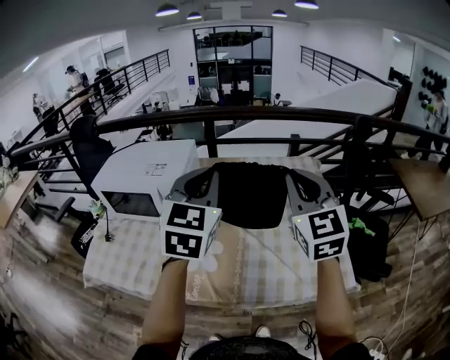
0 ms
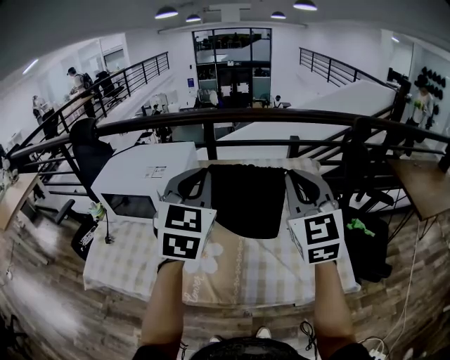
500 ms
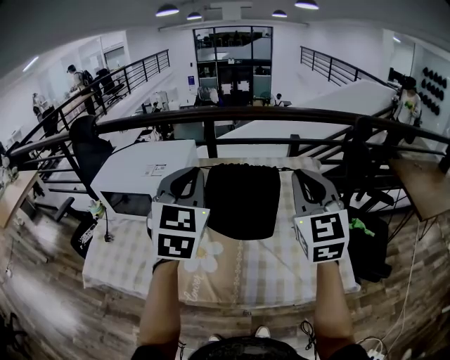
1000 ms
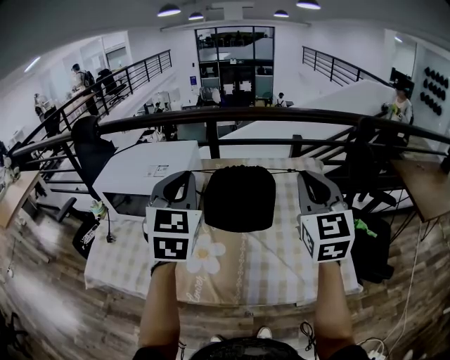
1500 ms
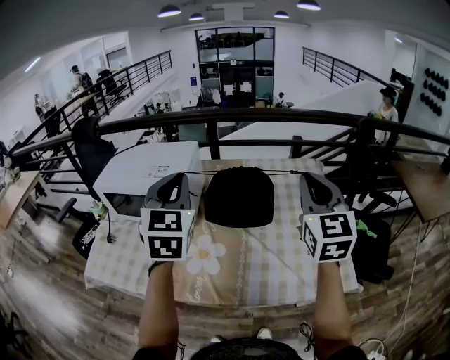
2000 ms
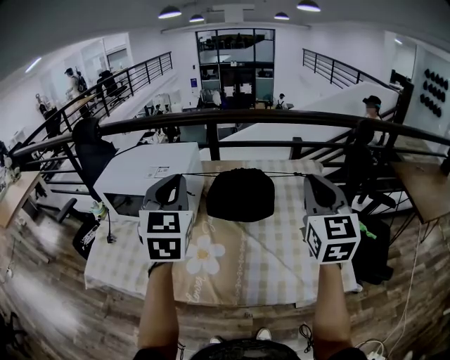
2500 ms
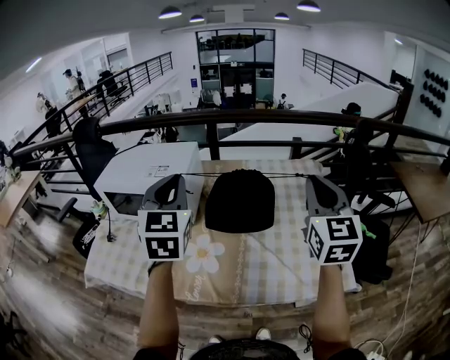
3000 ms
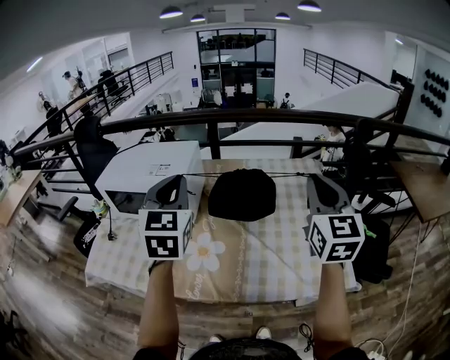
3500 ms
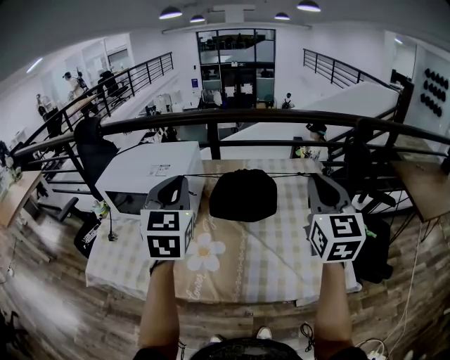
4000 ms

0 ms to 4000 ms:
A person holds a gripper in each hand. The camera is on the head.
0 ms to 2000 ms: The left gripper is displaced to the left by approximately 10 cm.
2000 ms to 4000 ms: The grippers stay close to where they were, moving slightly.

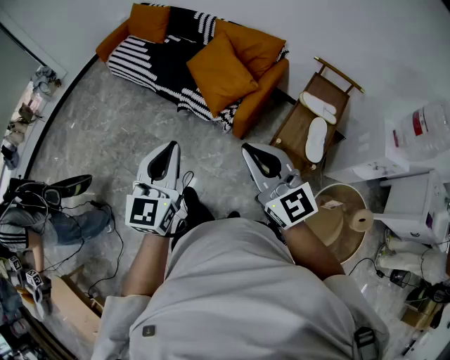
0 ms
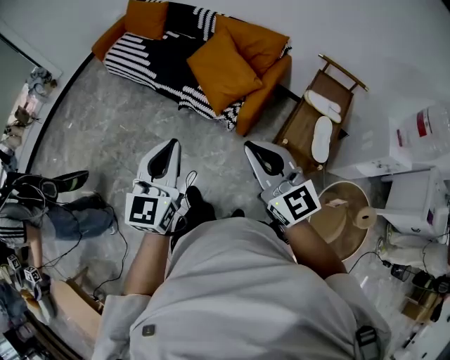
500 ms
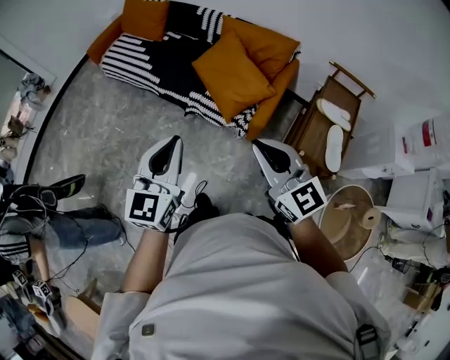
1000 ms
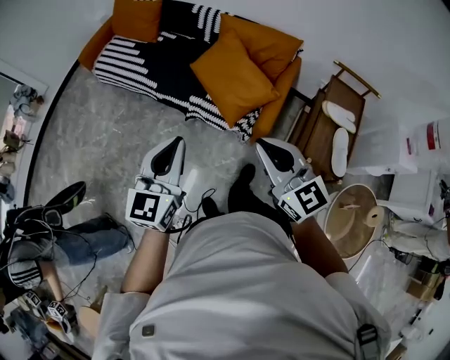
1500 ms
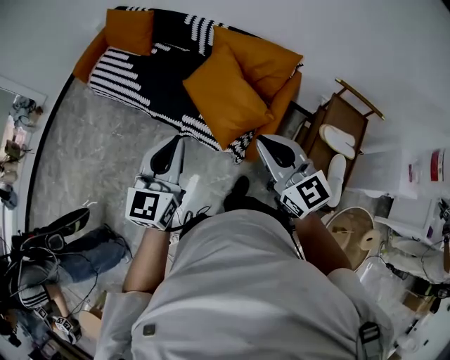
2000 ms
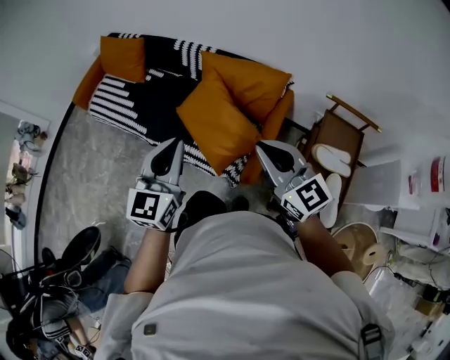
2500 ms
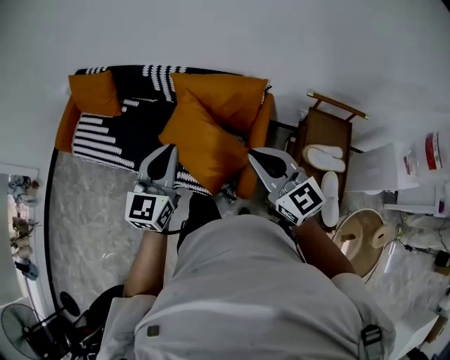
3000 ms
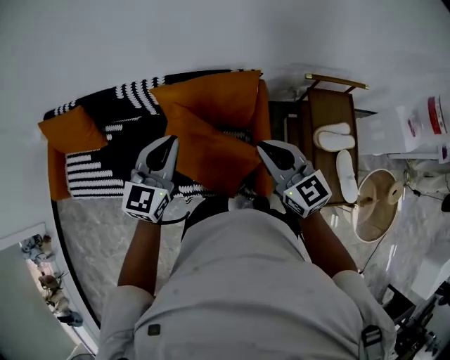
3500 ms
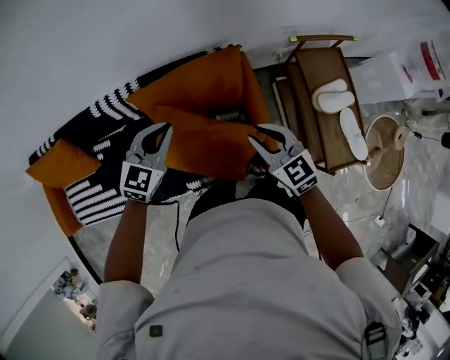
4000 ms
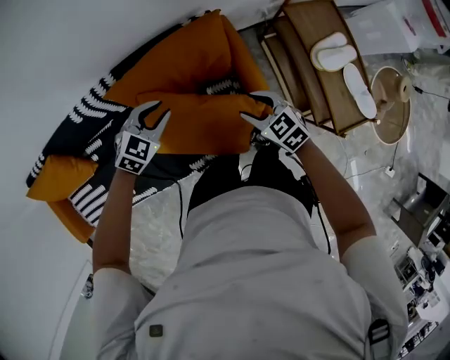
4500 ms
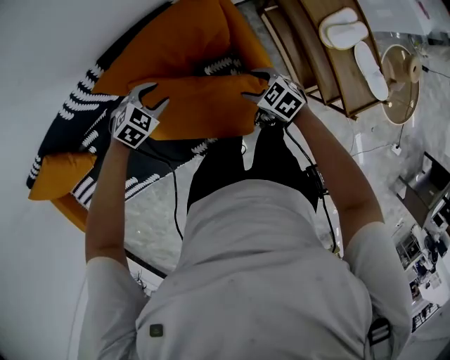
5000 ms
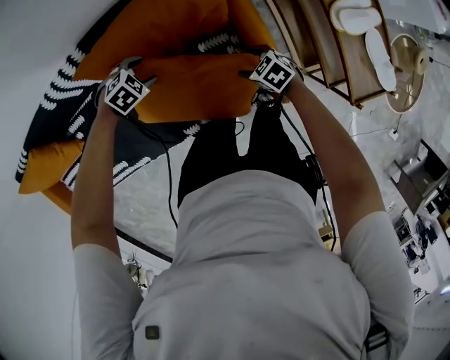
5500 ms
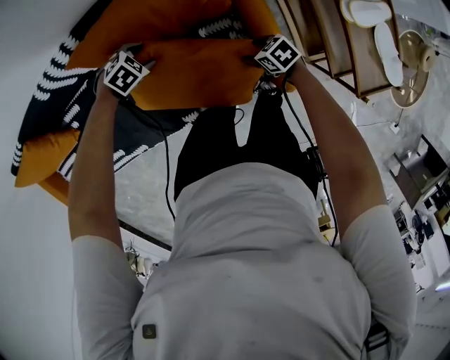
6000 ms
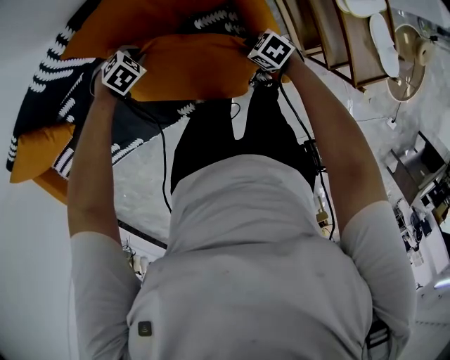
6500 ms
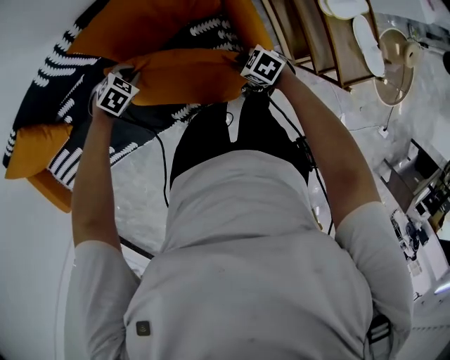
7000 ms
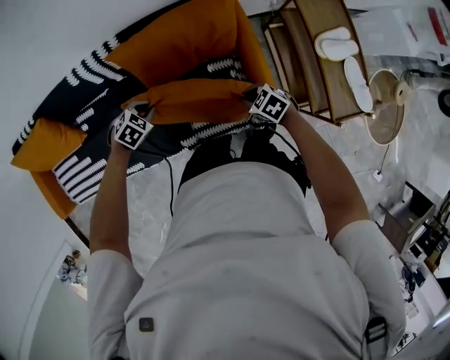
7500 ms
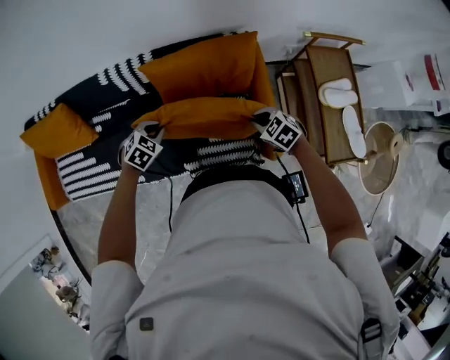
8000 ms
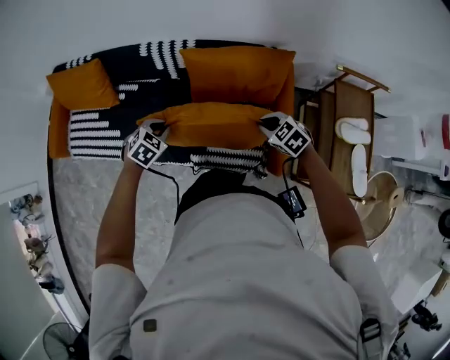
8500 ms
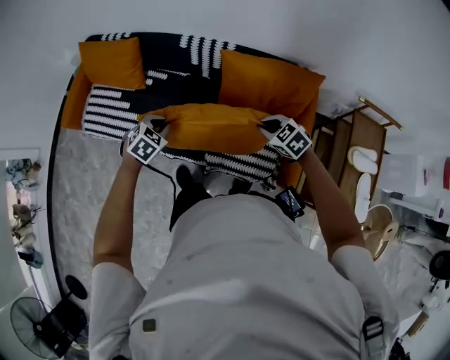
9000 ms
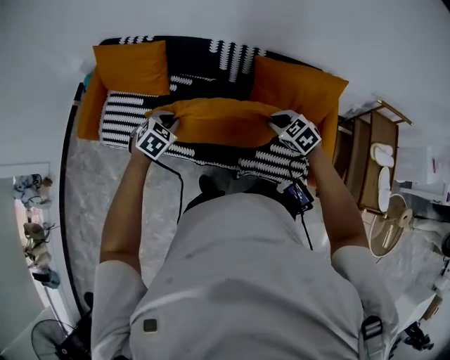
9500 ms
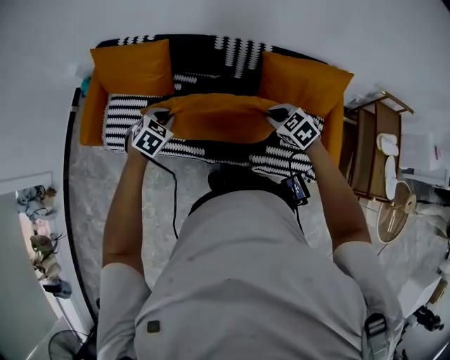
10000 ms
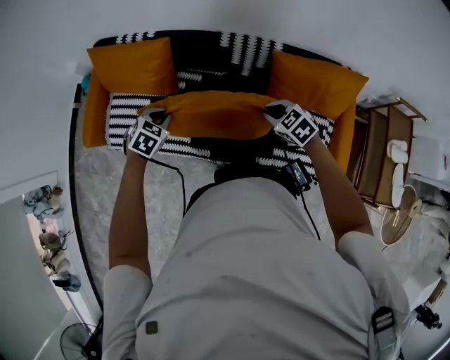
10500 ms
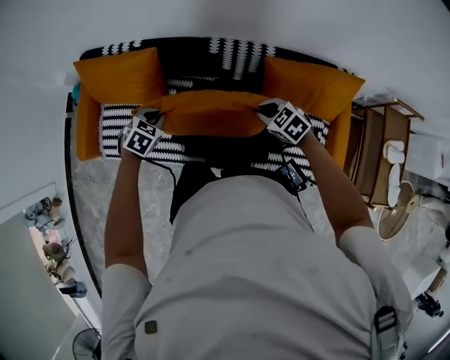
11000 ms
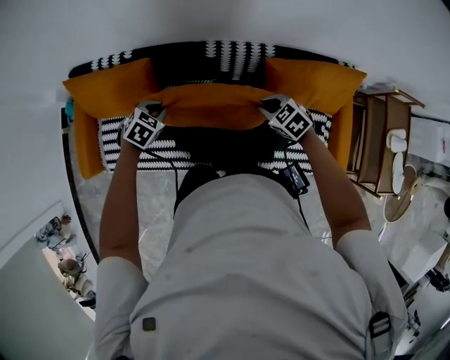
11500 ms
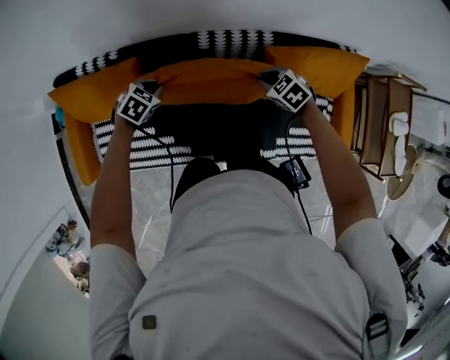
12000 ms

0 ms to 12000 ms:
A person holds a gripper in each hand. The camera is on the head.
0 ms to 2000 ms: The grippers both shift forward by roughly 35 cm.
2000 ms to 4000 ms: The left gripper shifts by approximately 50 cm, and swivels about 60 degrees, while the right gripper moves roughly 40 cm, and rotates approximately 40 degrees.
4000 ms to 6000 ms: The two grippers go approximately 40 cm downward. The right gripper tilts its fingers about 30 degrees downward, and opens. The left gripper tilts its fingers approximately 40 degrees downward, and opens.
6000 ms to 8000 ms: Both grippers move upward, approximately 25 cm. The right gripper turns by approximately 40 degrees, and closes. The left gripper rotates roughly 30 degrees, and closes.
8000 ms to 10000 ms: Both grippers are carried about 40 cm. The left gripper rotates about 20 degrees.
10000 ms to 12000 ms: The left gripper is displaced forward by roughly 35 cm, while the right gripper shifts approximately 30 cm forward and downward.

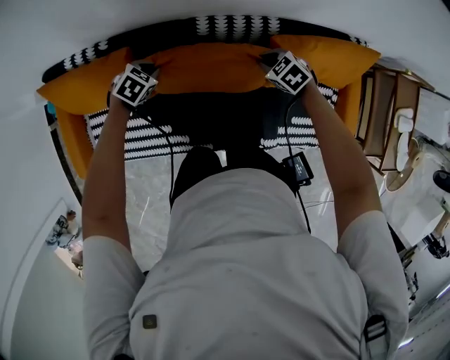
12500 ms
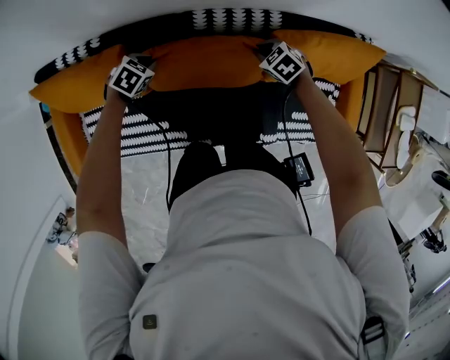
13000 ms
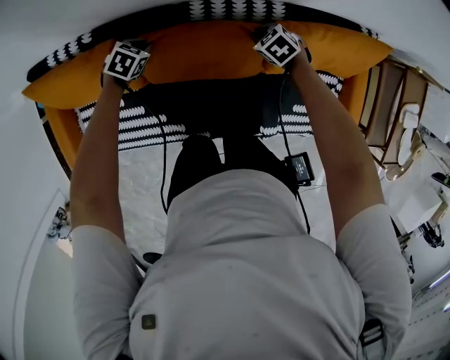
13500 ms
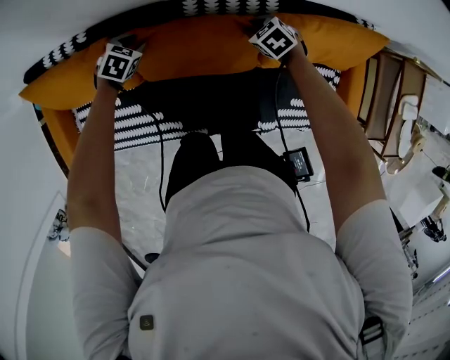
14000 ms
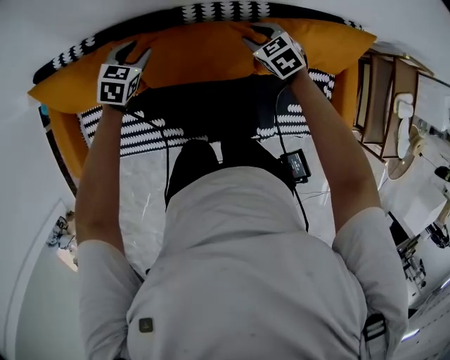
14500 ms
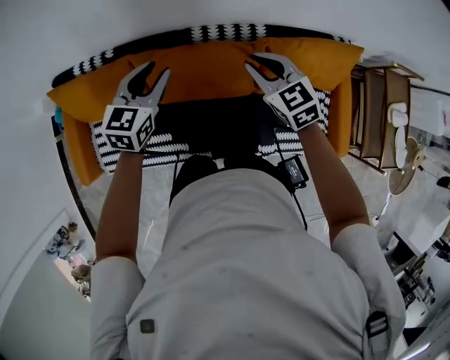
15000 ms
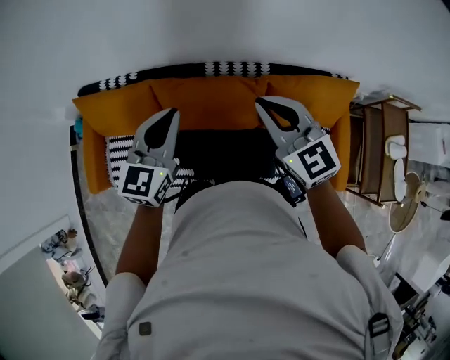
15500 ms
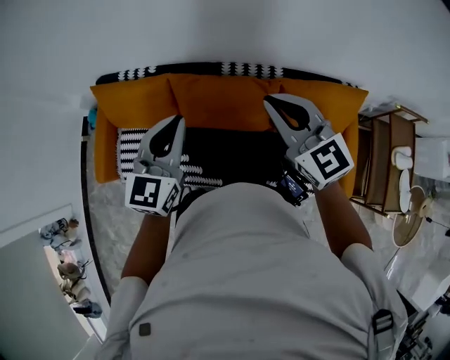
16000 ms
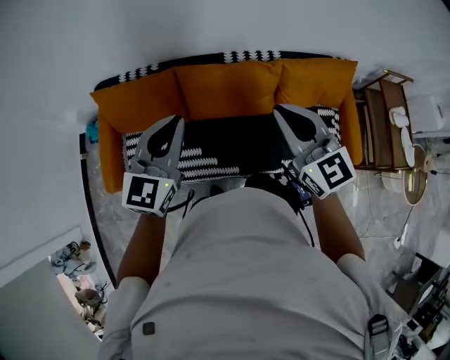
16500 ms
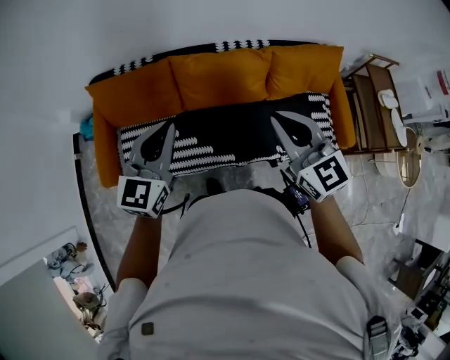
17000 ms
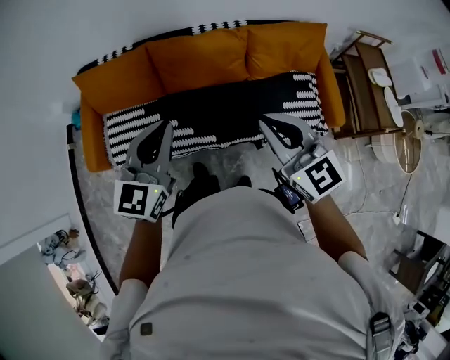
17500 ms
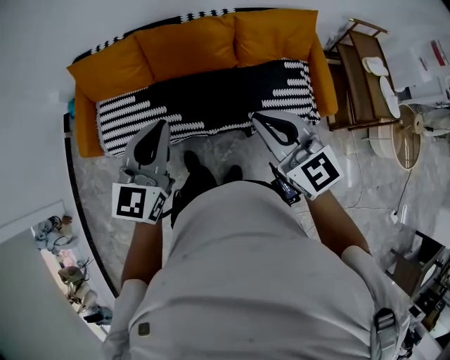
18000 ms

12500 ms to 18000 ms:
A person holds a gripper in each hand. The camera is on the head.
12500 ms to 14500 ms: The right gripper reaches about 5 cm downward, then returns, and opens; the left gripper moves upward, some 5 cm, rotates roughly 20 degrees, and opens its fingers.
14500 ms to 16000 ms: Both grippers move upward and backward, approximately 40 cm. The left gripper tips its fingers upward by approximately 40 degrees, and closes up; the right gripper tilts its fingers about 50 degrees upward, and closes its fingers.
16000 ms to 18000 ms: Both grippers move backward, some 40 cm.

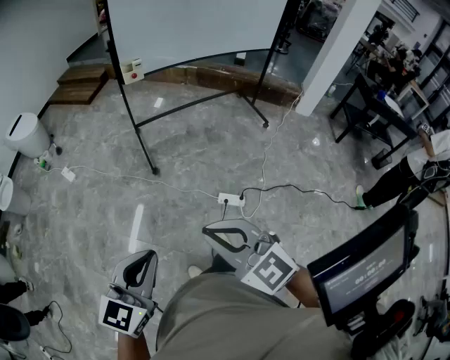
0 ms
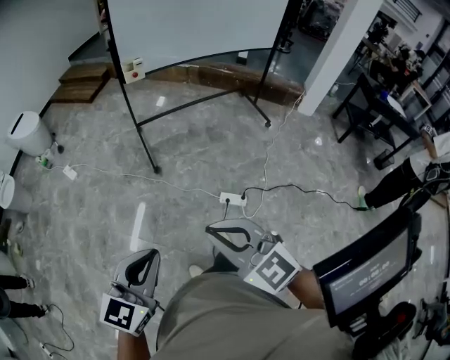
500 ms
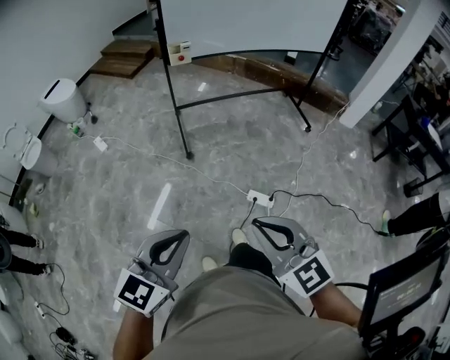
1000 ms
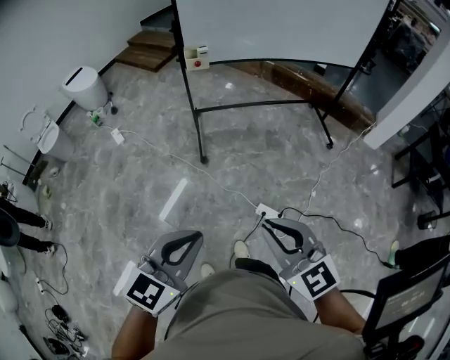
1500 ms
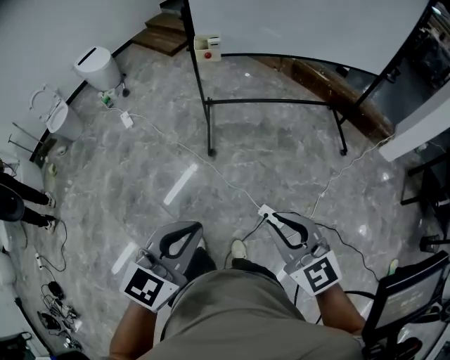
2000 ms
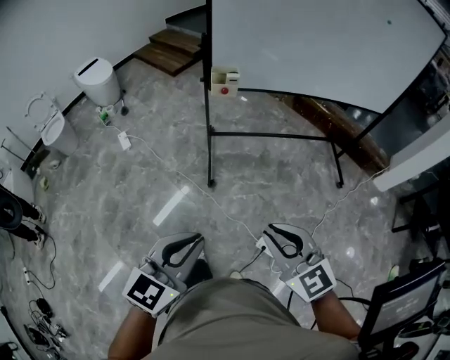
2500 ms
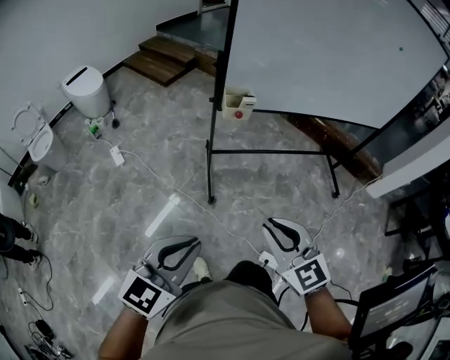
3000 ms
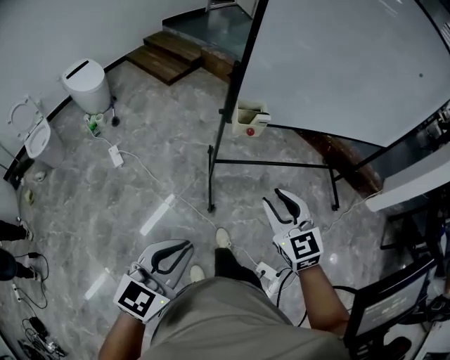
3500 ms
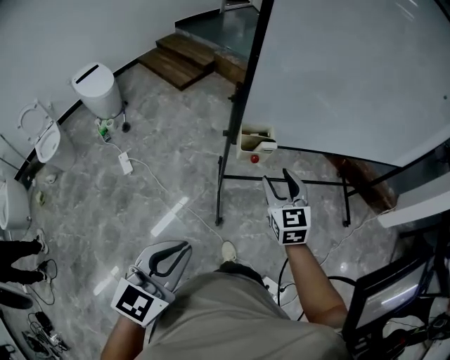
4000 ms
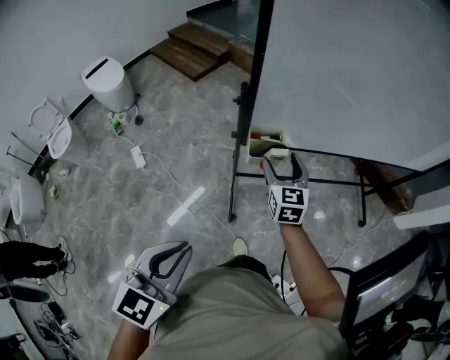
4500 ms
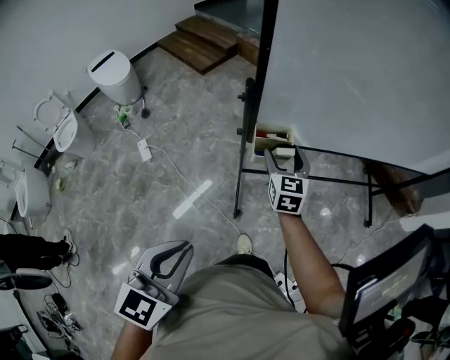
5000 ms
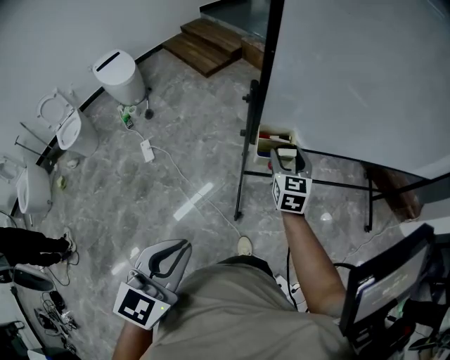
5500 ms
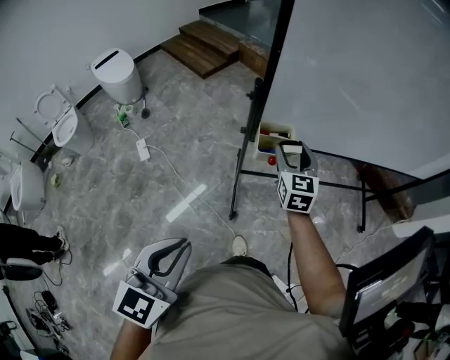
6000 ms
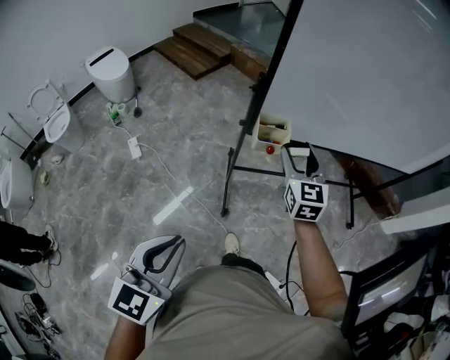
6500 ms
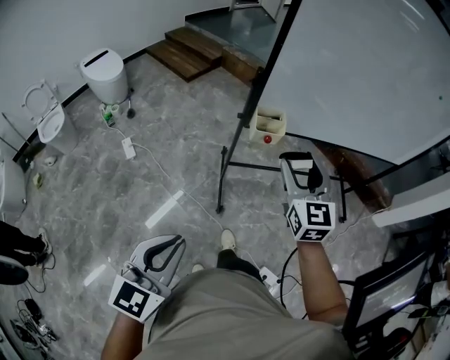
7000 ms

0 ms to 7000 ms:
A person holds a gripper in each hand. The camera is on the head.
0 ms to 2000 ms: Both grippers move forward and to the right, approximately 25 cm.
2000 ms to 3500 ms: Both grippers move forward and to the left, roughly 40 cm.
3500 ms to 5000 ms: The left gripper is displaced forward by roughly 15 cm, while the right gripper shifts roughly 35 cm forward, turns by about 20 degrees, and opens its fingers.
5000 ms to 7000 ms: The left gripper is displaced backward by approximately 15 cm. Meanwhile the right gripper goes roughly 30 cm backward and upward.
